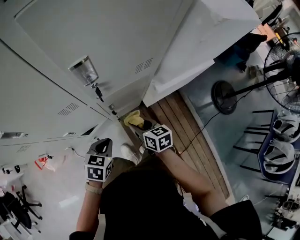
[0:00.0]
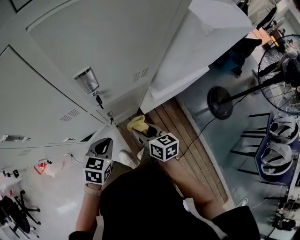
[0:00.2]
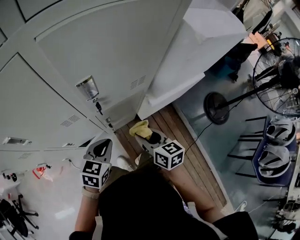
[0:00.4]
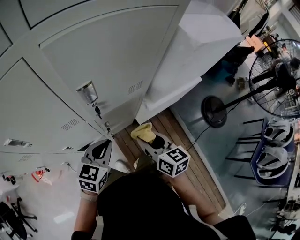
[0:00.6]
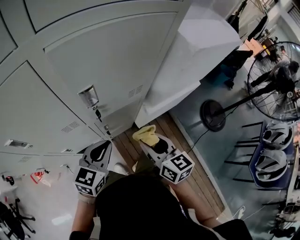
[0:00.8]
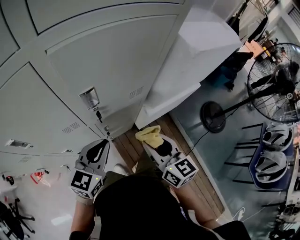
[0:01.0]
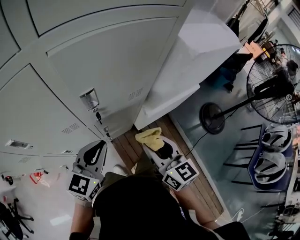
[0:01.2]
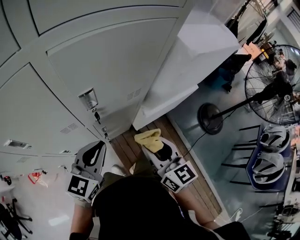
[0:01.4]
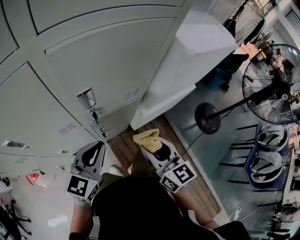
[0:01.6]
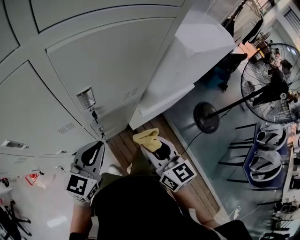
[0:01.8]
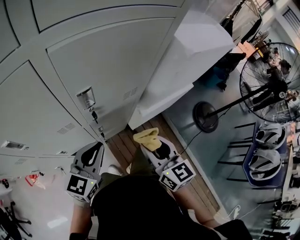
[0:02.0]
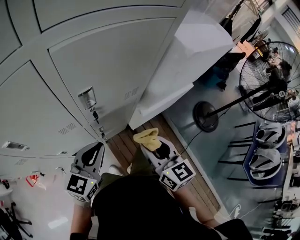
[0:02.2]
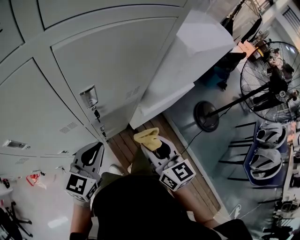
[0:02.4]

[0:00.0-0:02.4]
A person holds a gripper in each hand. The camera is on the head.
0:00.0 to 0:01.2: Both grippers travel together upward, about 25 cm. The right gripper swivels roughly 30 degrees, while the left gripper tilts its fingers some 40 degrees upward.
0:01.2 to 0:02.4: The grippers move only a little.

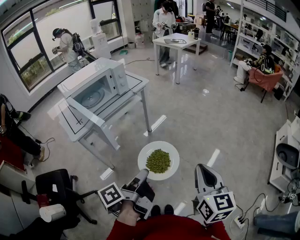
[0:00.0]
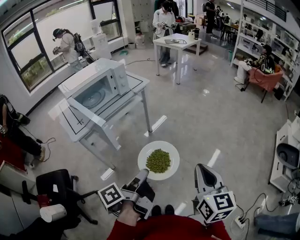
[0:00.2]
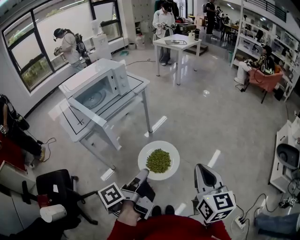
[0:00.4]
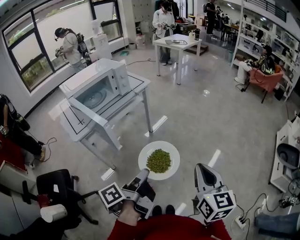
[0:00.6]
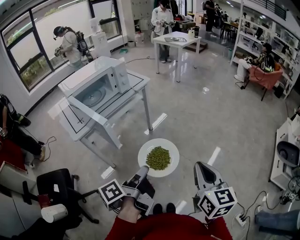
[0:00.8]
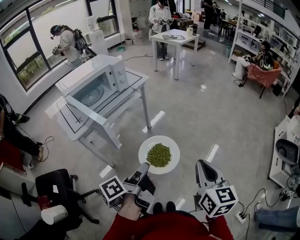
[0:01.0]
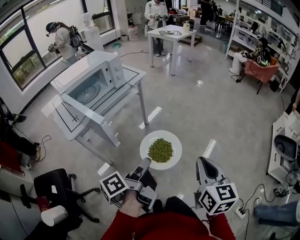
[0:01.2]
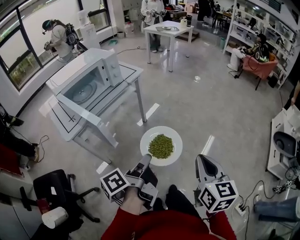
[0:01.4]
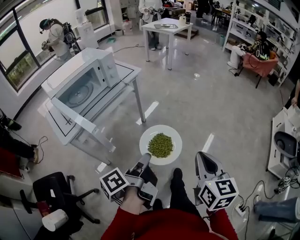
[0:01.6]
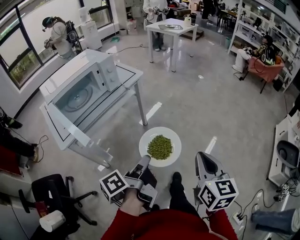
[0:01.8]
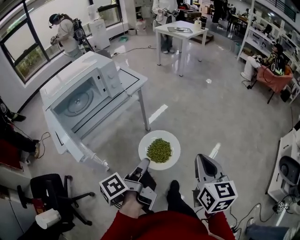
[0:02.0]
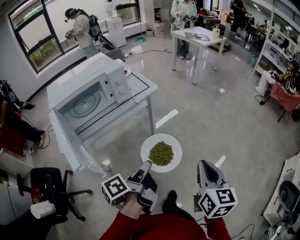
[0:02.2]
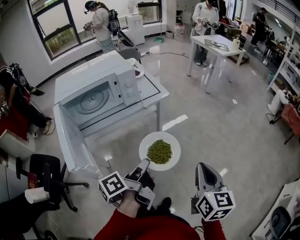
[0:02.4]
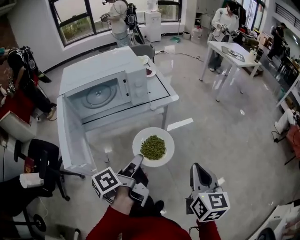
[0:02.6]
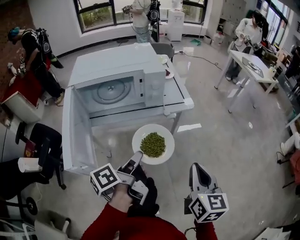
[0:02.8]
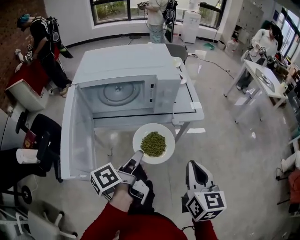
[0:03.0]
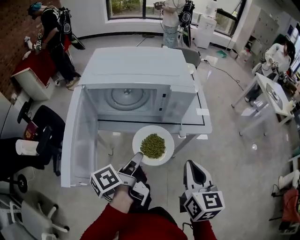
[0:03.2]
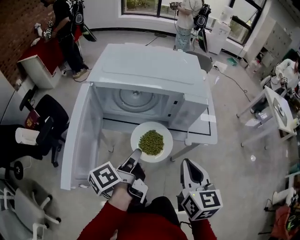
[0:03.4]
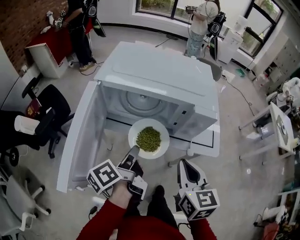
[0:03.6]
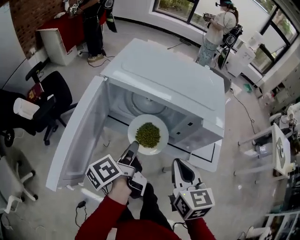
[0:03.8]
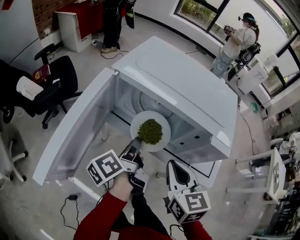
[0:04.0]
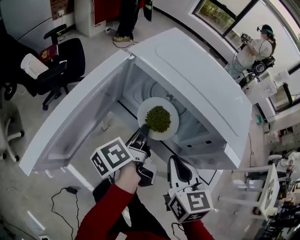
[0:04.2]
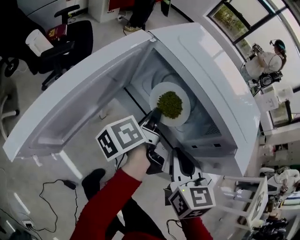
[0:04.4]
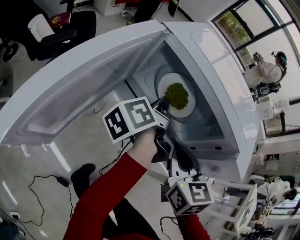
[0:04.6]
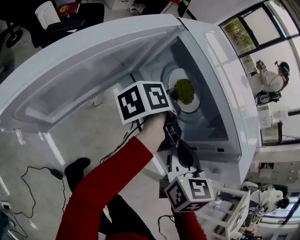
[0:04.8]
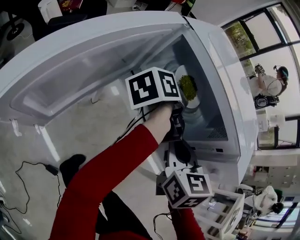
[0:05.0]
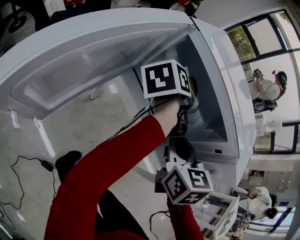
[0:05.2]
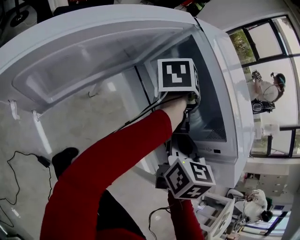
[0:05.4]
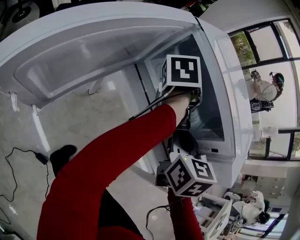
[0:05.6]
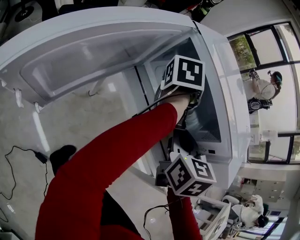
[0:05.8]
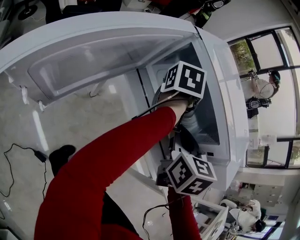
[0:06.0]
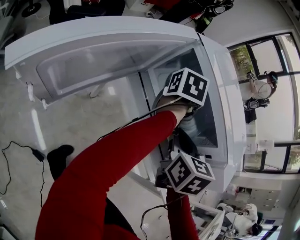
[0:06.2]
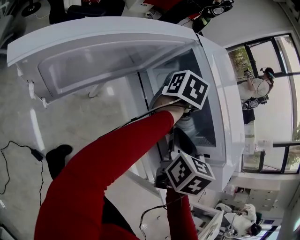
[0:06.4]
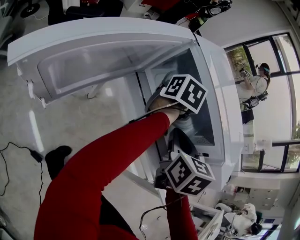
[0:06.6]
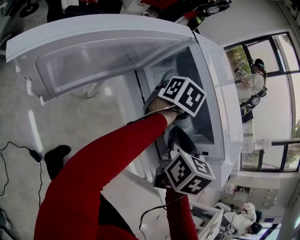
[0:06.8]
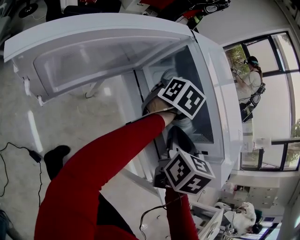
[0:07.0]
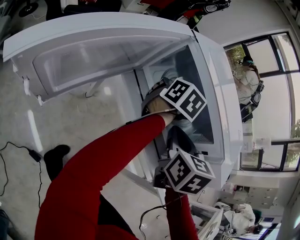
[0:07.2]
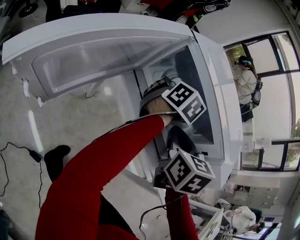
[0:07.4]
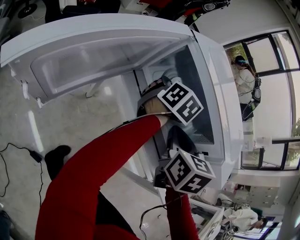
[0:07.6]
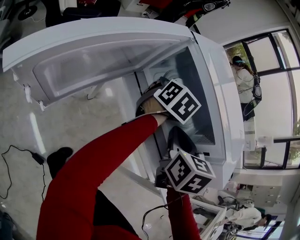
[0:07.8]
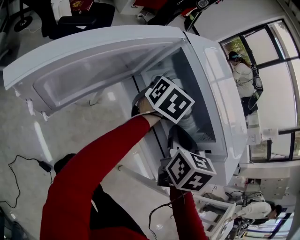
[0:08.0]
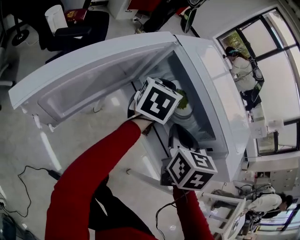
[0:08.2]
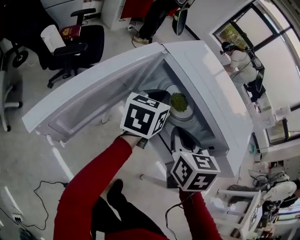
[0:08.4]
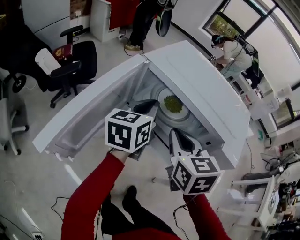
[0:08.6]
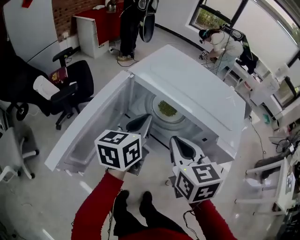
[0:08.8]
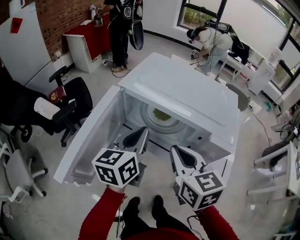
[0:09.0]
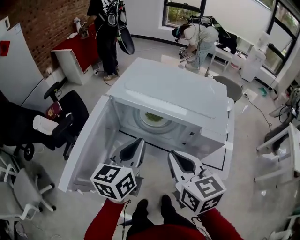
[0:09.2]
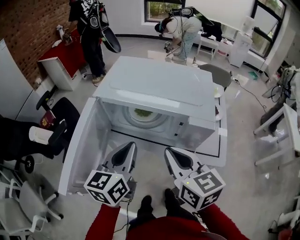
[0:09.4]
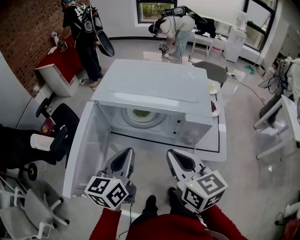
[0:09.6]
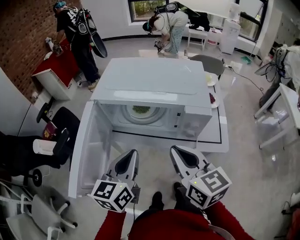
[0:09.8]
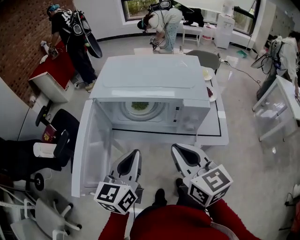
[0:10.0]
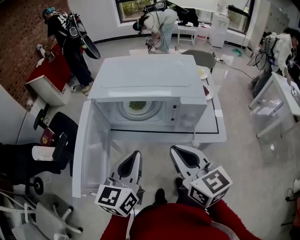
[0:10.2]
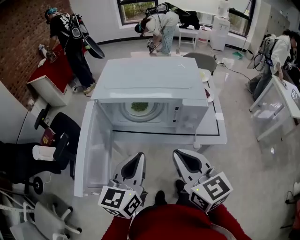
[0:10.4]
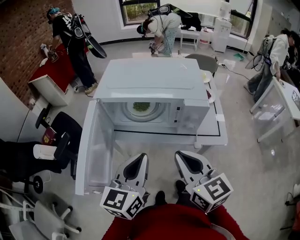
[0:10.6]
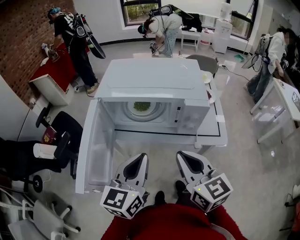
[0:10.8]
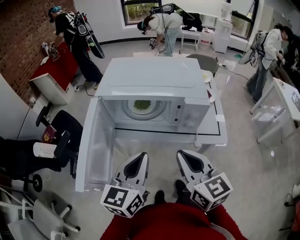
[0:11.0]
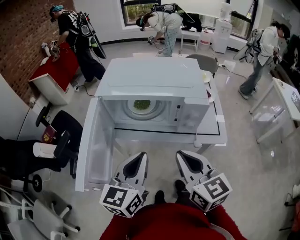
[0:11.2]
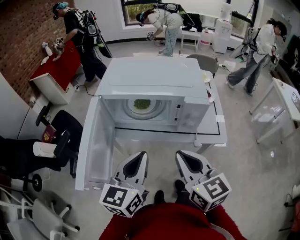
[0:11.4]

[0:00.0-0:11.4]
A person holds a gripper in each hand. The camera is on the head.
0:00.0 to 0:01.4: The grippers move only a little.
0:01.4 to 0:02.8: The right gripper moves about 35 cm, and changes its angle by approximately 40 degrees. The left gripper moves approximately 25 cm, and changes its angle by roughly 40 degrees.
0:02.8 to 0:04.2: The left gripper changes place by roughly 25 cm, and rotates approximately 50 degrees. Meanwhile the right gripper moves some 35 cm, and turns by roughly 60 degrees.
0:04.2 to 0:05.6: The left gripper shifts roughly 15 cm forward, and swivels roughly 20 degrees, while the right gripper goes some 10 cm forward.
0:05.6 to 0:07.2: The left gripper rotates around the line of its fingers by some 40 degrees, clockwise from behind, and opens its fingers.
0:07.2 to 0:08.6: The right gripper moves to the left, approximately 5 cm; the left gripper goes about 15 cm backward, to the left and upward, changes its angle by roughly 30 degrees, and closes its fingers.
0:08.6 to 0:10.0: The left gripper goes approximately 15 cm backward, and rotates about 20 degrees. The right gripper goes approximately 15 cm backward and upward, and turns by roughly 30 degrees.
0:10.0 to 0:11.4: There are only small adjustments of the grippers.

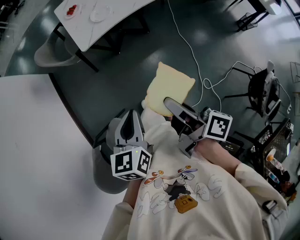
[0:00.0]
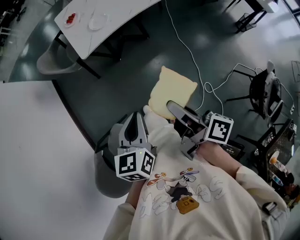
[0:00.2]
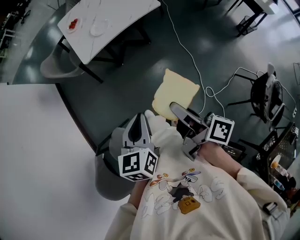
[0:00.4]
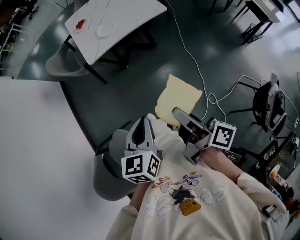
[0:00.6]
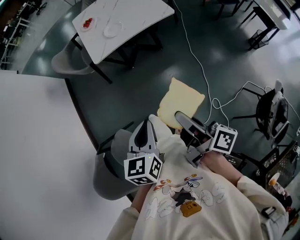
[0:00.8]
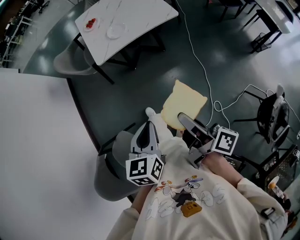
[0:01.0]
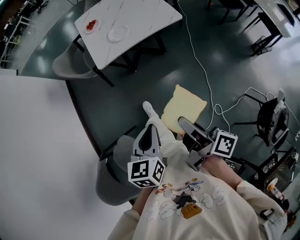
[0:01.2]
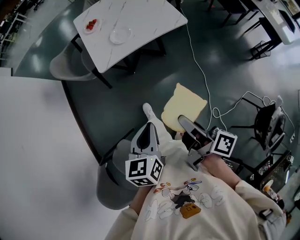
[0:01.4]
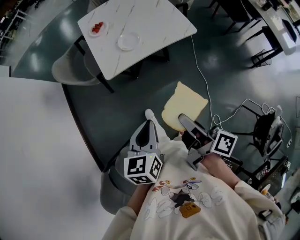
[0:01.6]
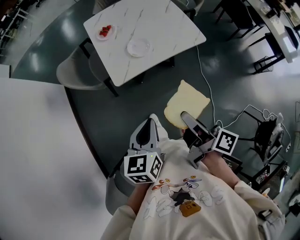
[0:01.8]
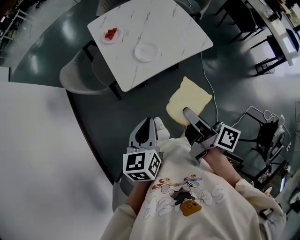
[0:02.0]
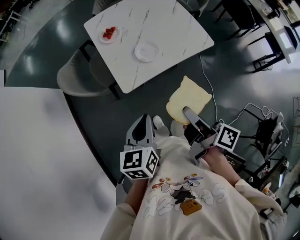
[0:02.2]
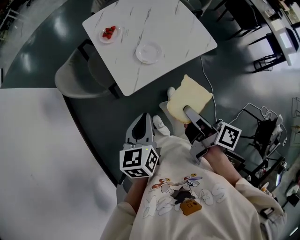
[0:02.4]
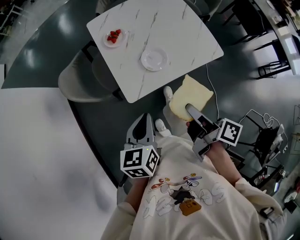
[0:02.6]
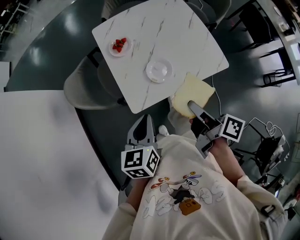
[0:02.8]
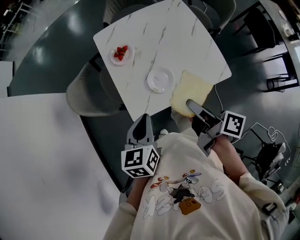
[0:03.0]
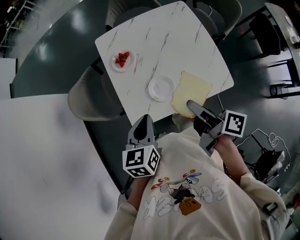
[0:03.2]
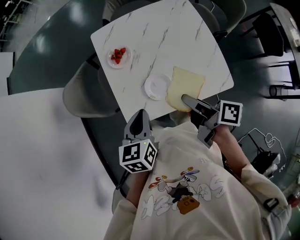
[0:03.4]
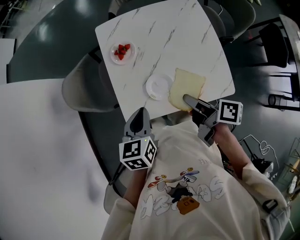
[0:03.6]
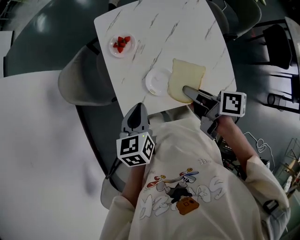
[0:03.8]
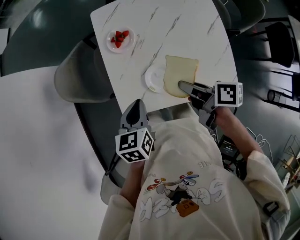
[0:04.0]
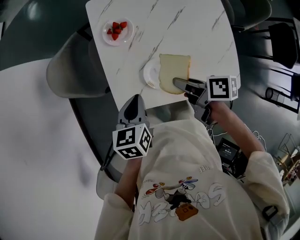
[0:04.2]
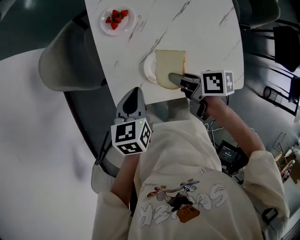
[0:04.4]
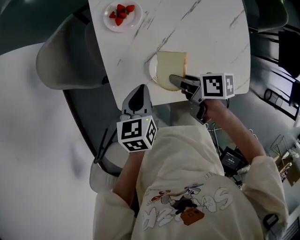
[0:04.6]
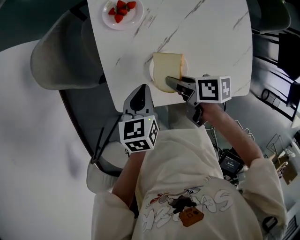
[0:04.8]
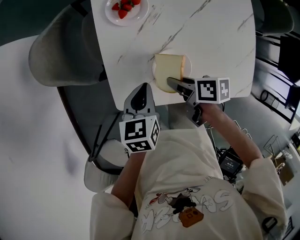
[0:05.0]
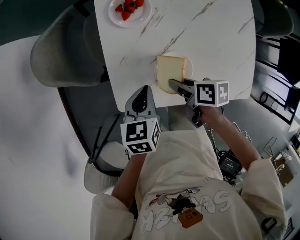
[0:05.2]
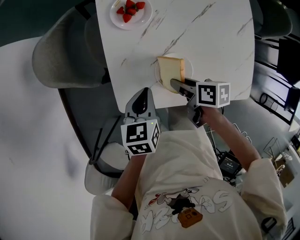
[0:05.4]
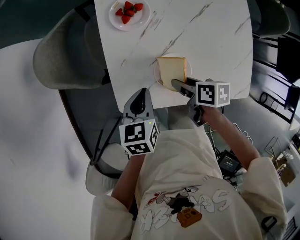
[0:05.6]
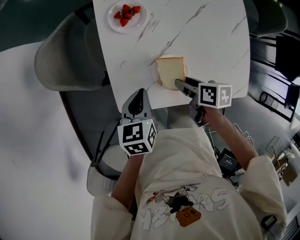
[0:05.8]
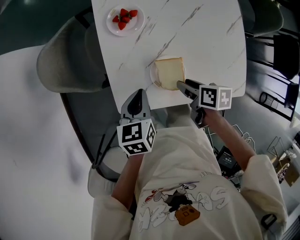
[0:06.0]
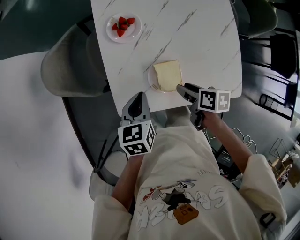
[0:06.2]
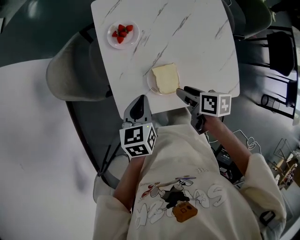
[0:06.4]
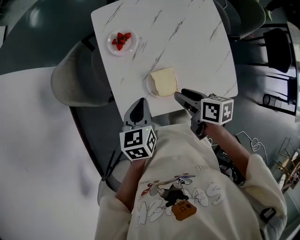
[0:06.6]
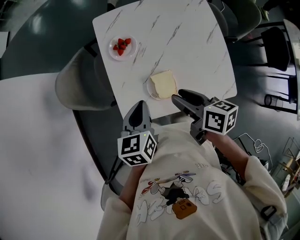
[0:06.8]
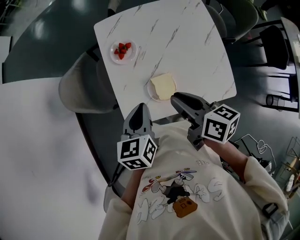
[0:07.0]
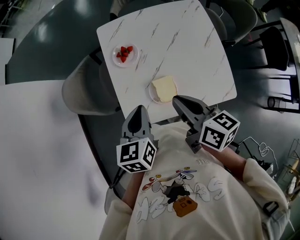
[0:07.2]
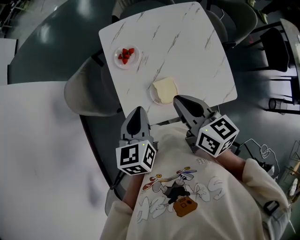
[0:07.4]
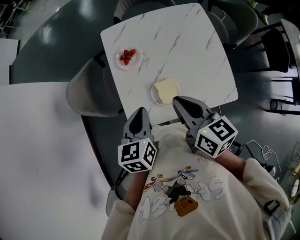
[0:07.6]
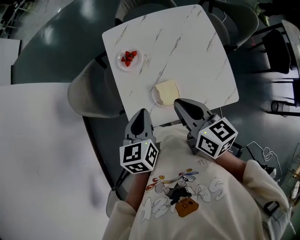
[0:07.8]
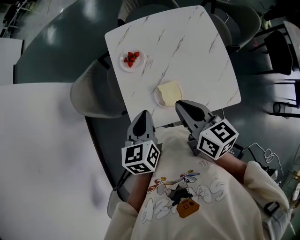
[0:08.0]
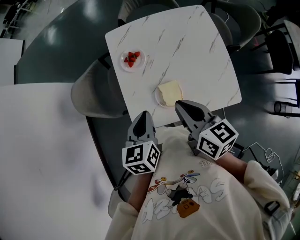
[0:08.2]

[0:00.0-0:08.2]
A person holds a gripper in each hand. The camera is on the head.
0:00.0 to 0:01.6: The left gripper changes place by about 15 cm.
0:01.6 to 0:03.2: The left gripper ends up roughly 40 cm from where it was.
0:03.2 to 0:05.0: The left gripper travels downward by about 20 cm, and turns by about 20 degrees.
0:05.0 to 0:06.6: The left gripper shifts approximately 10 cm upward.
0:06.6 to 0:08.2: The left gripper is displaced upward by about 10 cm.

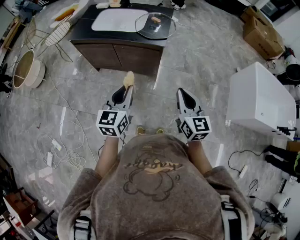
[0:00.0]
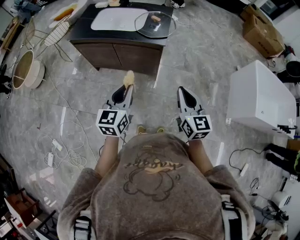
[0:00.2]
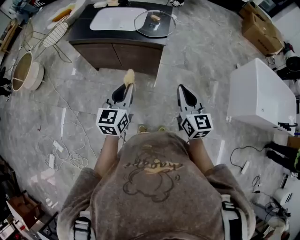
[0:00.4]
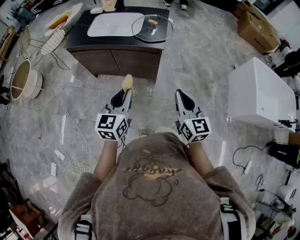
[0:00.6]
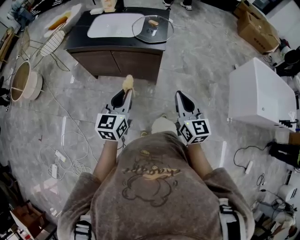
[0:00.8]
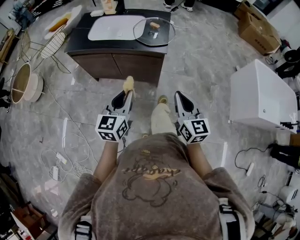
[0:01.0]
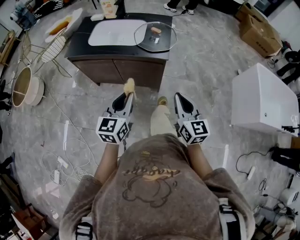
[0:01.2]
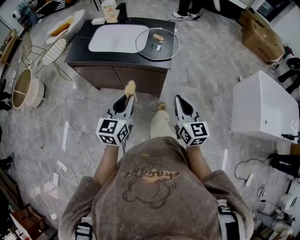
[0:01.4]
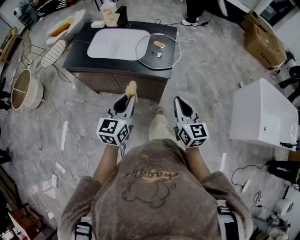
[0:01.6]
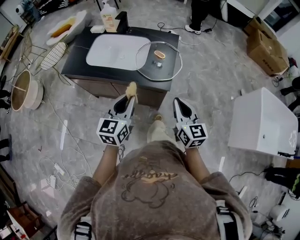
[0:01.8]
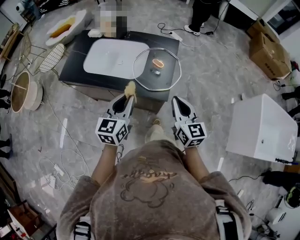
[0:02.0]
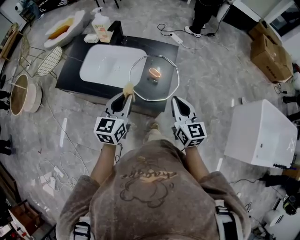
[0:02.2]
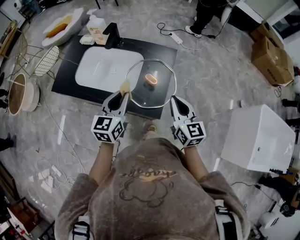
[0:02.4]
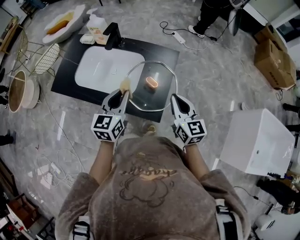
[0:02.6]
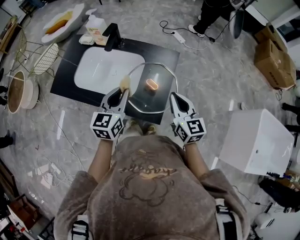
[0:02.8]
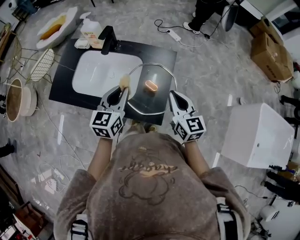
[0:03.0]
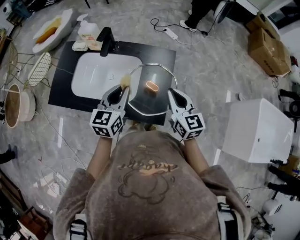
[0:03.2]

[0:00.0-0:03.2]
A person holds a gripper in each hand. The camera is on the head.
0:00.0 to 0:01.6: The two grippers go approximately 20 cm forward.
0:01.6 to 0:03.2: Both grippers move forward, about 40 cm.
